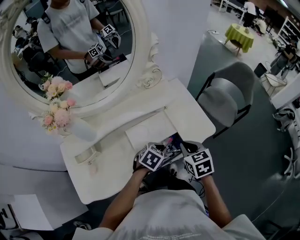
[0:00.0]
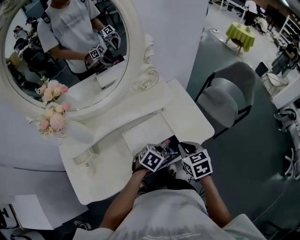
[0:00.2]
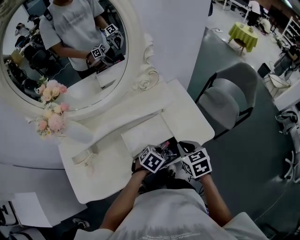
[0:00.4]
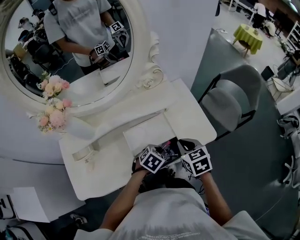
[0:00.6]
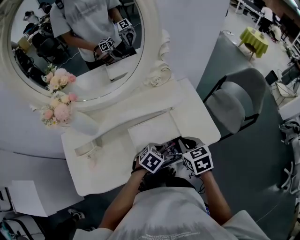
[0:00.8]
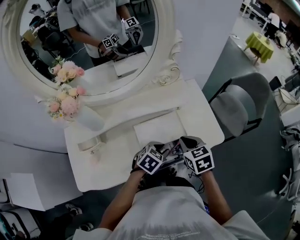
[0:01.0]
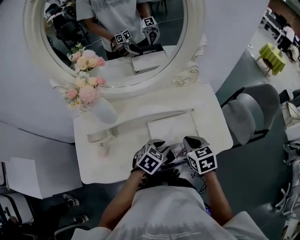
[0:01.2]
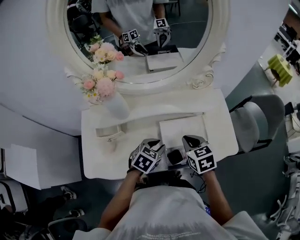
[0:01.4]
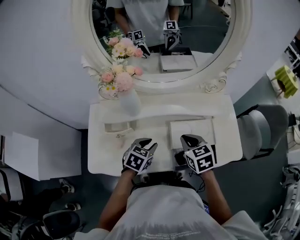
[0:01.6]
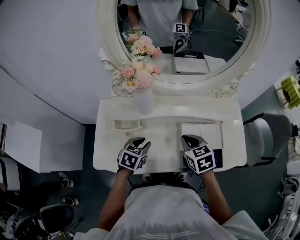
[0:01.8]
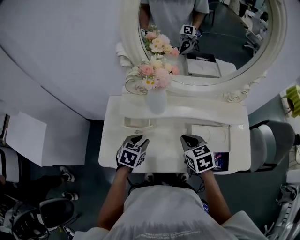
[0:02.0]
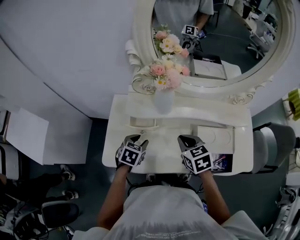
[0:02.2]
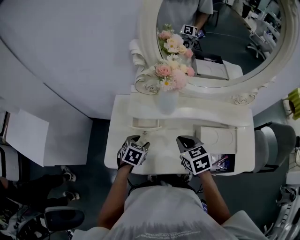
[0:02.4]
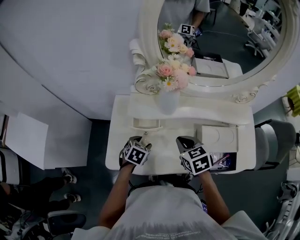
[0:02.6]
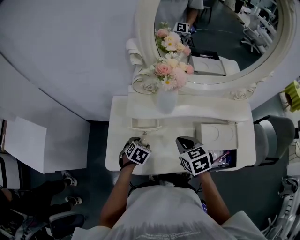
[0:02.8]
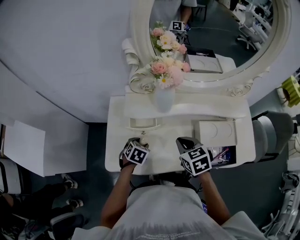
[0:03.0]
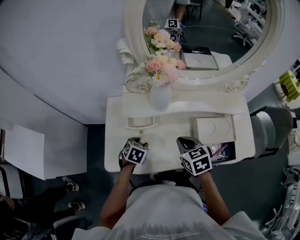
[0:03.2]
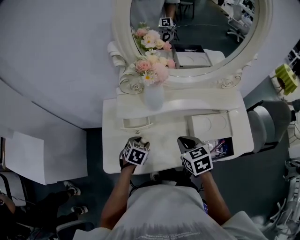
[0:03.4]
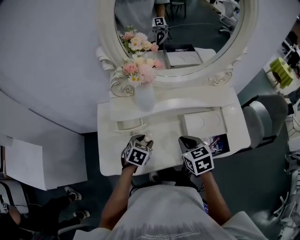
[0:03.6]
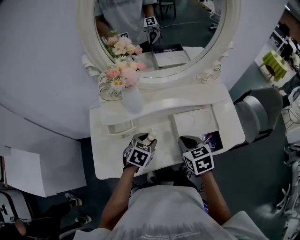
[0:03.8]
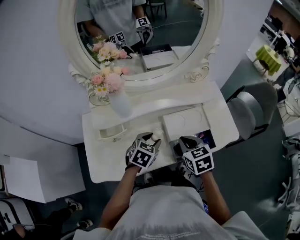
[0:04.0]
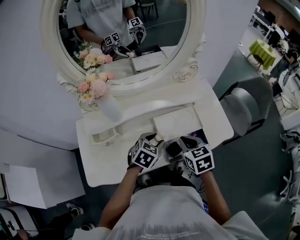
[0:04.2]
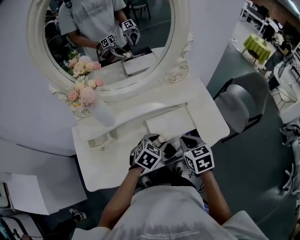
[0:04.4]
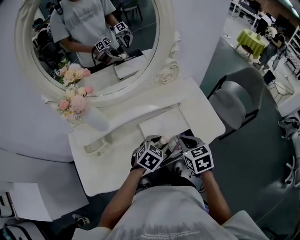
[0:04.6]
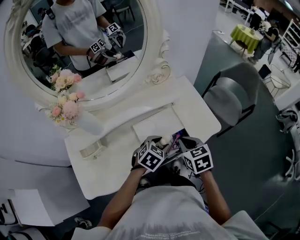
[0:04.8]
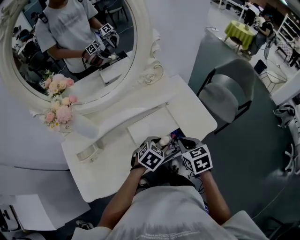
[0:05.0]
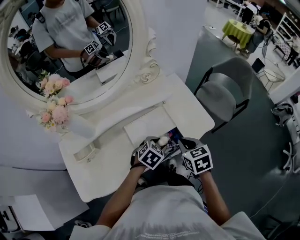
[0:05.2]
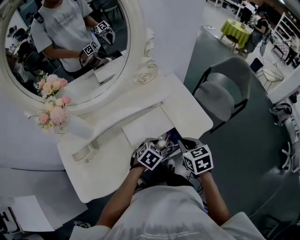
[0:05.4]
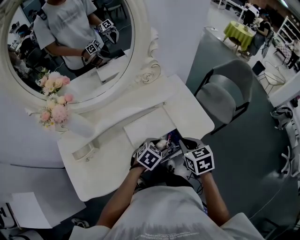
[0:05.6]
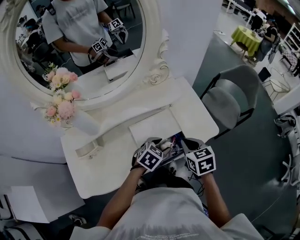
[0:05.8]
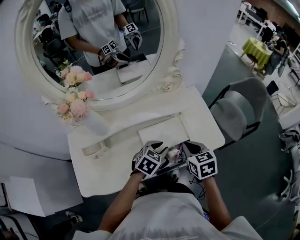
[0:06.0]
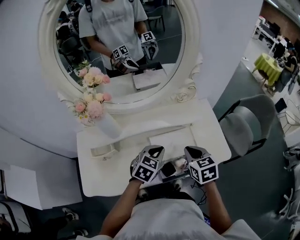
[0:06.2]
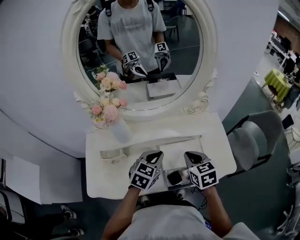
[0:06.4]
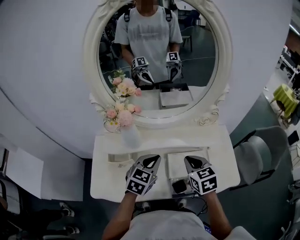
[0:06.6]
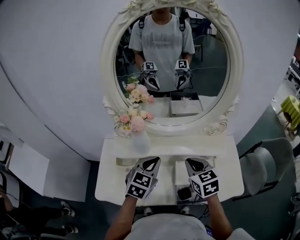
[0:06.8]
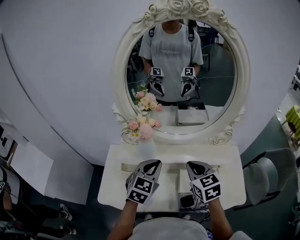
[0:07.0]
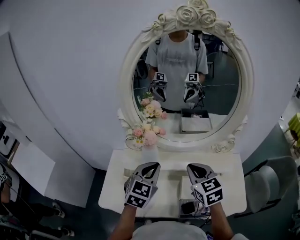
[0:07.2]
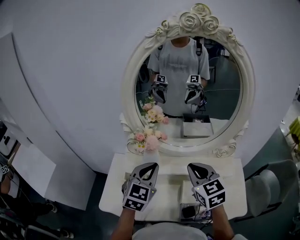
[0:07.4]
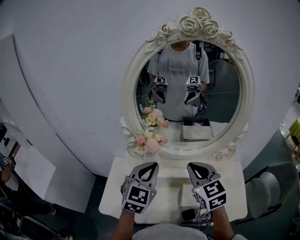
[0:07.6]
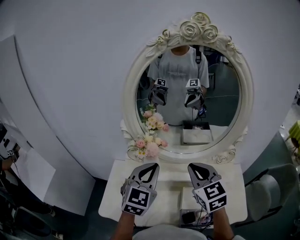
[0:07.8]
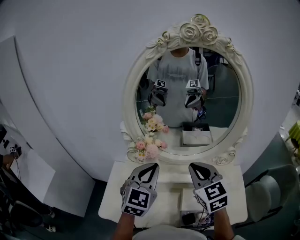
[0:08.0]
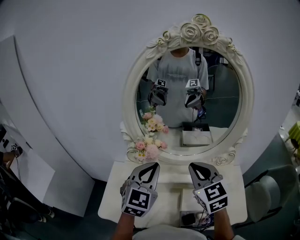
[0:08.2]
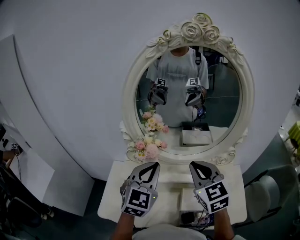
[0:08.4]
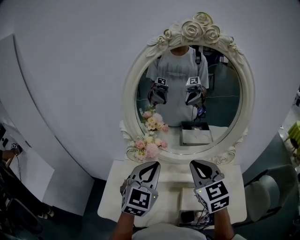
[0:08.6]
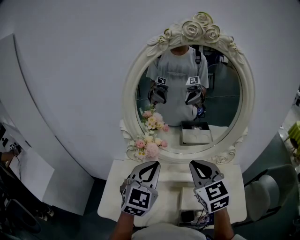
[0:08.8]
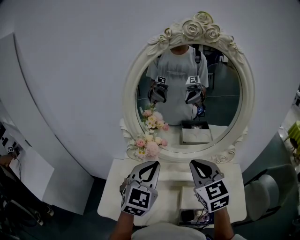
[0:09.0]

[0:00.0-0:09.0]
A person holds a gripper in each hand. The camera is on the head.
0:00.0 to 0:01.6: The left gripper changes place by about 25 cm, and swivels roughly 30 degrees. Meanwhile the right gripper shifts by about 20 cm, and rotates some 30 degrees.
0:01.6 to 0:03.0: The left gripper travels to the left and downward by approximately 20 cm. The right gripper shifts about 15 cm to the left.
0:03.0 to 0:04.4: The left gripper moves about 35 cm, and swivels roughly 40 degrees. Meanwhile the right gripper ends up some 25 cm from where it was, and rotates roughly 20 degrees.
0:04.4 to 0:06.0: The right gripper goes some 5 cm to the right.
0:06.0 to 0:07.6: The left gripper travels upward by roughly 25 cm, tips its fingers upward by about 30 degrees, and closes its fingers, while the right gripper changes place by some 35 cm, and turns by roughly 40 degrees.
0:07.6 to 0:09.0: There are only small adjustments of the grippers.

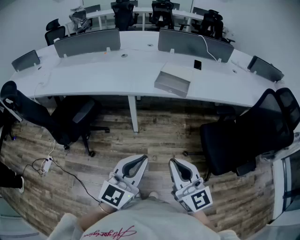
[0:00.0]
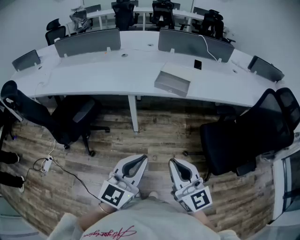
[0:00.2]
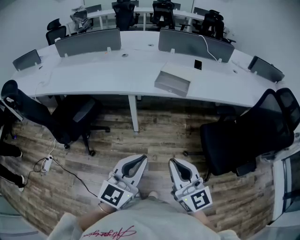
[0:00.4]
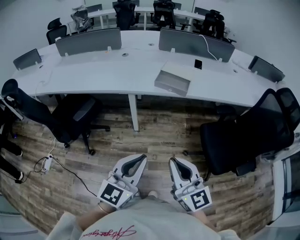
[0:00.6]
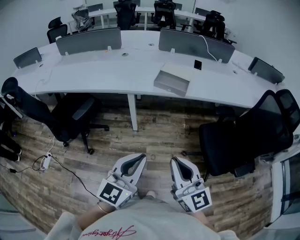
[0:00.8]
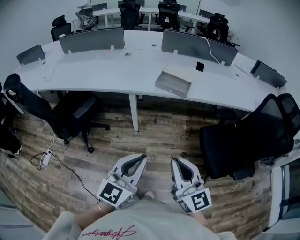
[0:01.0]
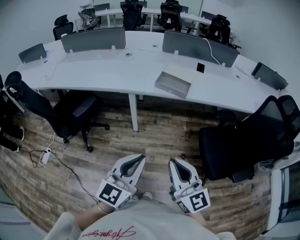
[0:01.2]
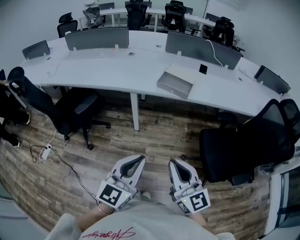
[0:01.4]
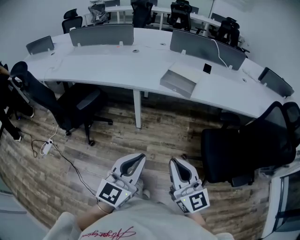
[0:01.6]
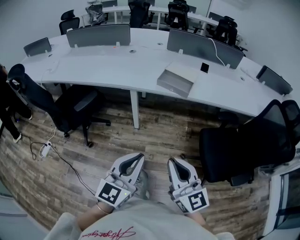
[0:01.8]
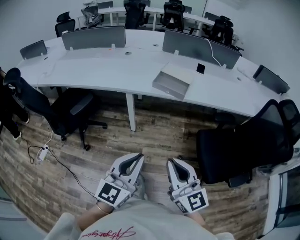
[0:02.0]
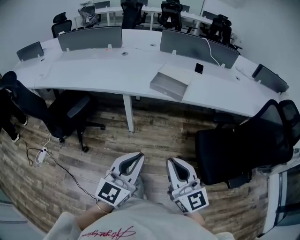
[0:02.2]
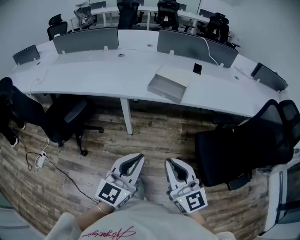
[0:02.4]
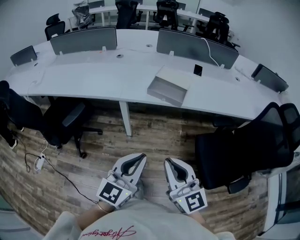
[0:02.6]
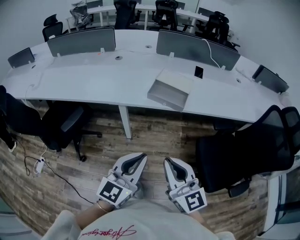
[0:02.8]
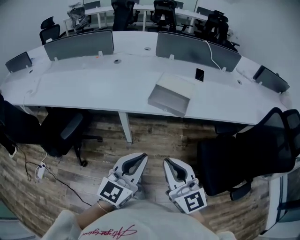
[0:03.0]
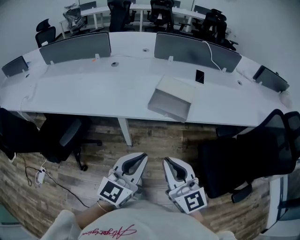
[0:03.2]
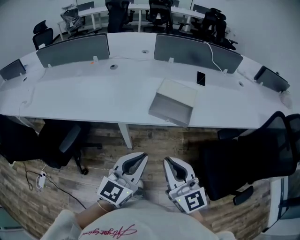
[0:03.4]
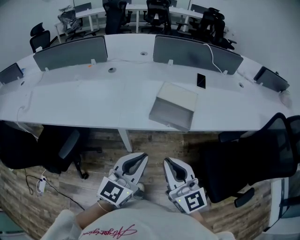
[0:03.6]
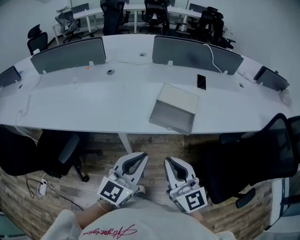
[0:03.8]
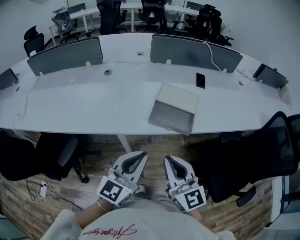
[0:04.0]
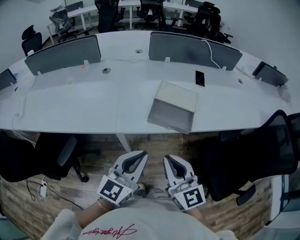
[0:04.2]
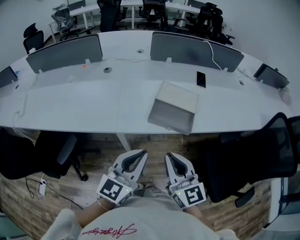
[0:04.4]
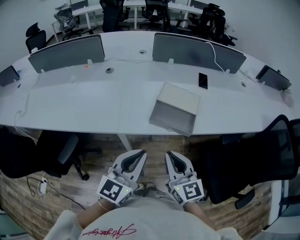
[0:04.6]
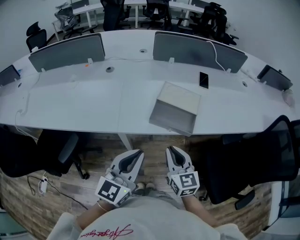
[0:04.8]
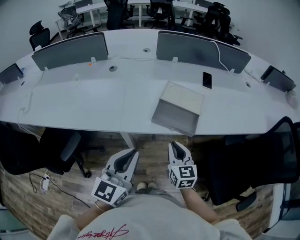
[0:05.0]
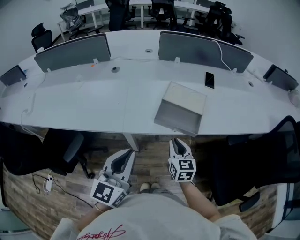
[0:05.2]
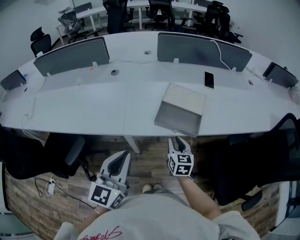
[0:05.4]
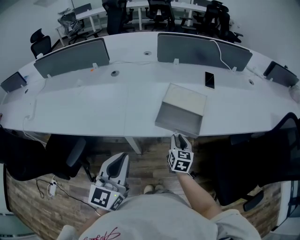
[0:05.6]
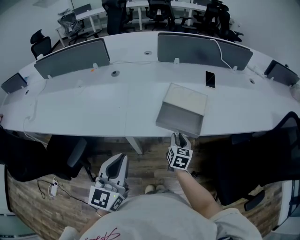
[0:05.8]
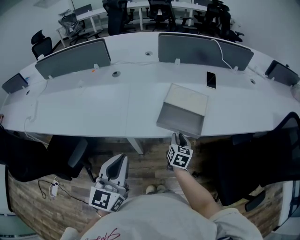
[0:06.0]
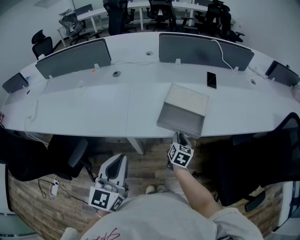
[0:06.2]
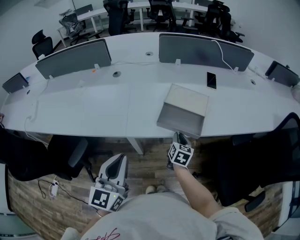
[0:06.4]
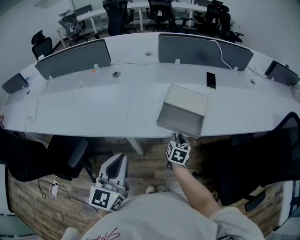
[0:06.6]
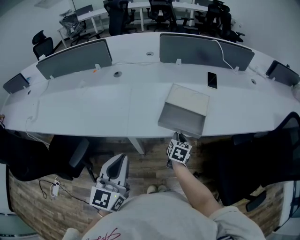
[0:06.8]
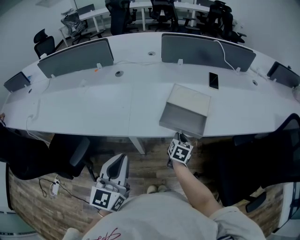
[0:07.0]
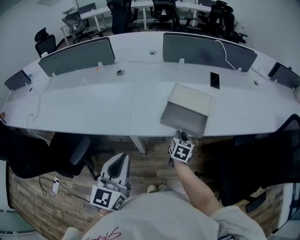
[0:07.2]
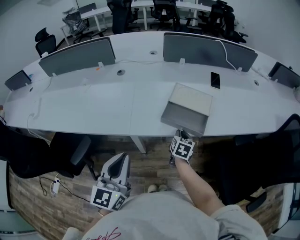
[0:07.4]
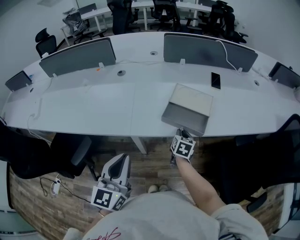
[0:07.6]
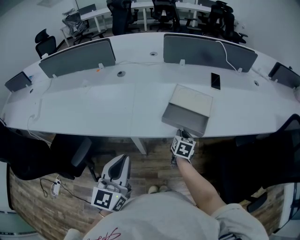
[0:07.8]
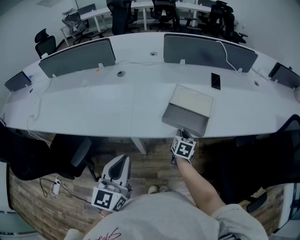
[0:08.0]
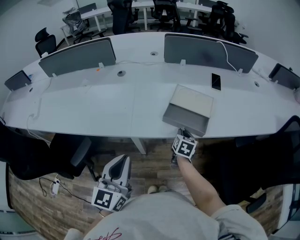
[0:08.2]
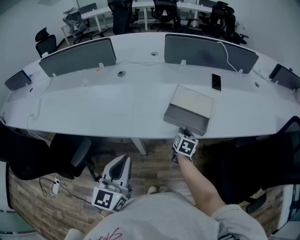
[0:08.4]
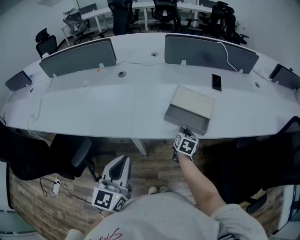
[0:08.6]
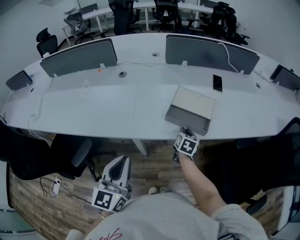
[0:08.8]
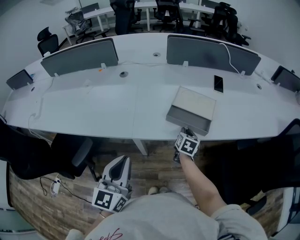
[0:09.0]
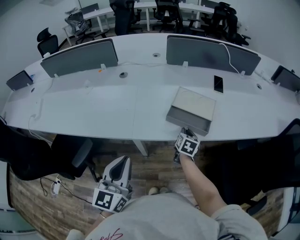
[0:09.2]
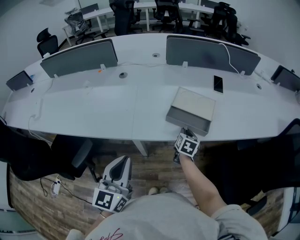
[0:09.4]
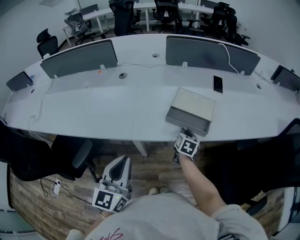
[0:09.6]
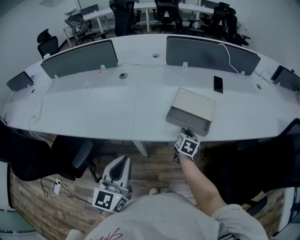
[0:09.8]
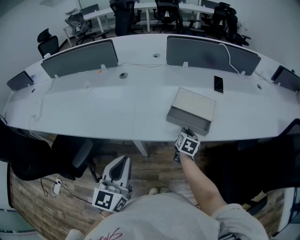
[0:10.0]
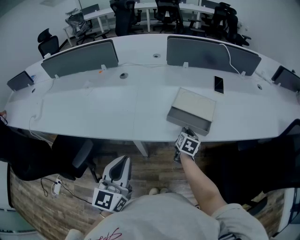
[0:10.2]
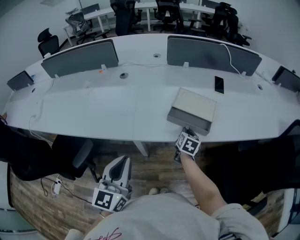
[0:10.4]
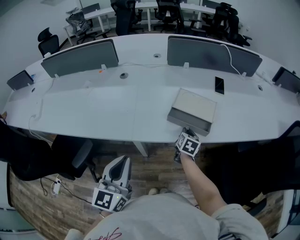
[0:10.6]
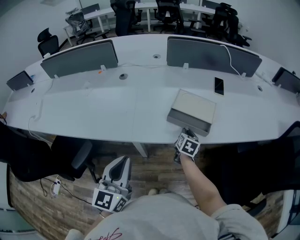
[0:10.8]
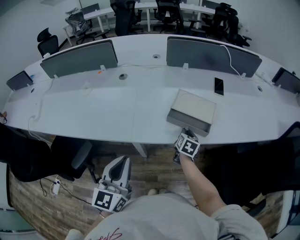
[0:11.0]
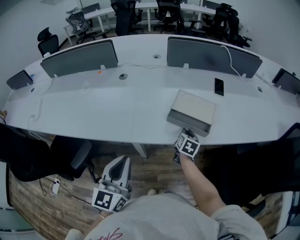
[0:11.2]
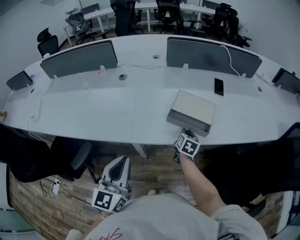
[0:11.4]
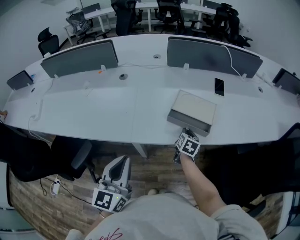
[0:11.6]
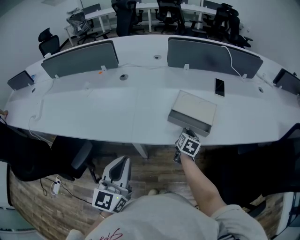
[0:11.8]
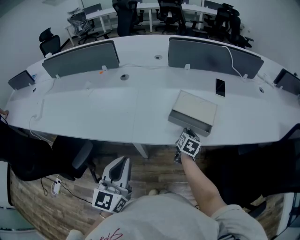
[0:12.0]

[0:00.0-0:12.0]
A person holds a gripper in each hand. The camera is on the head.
0:00.0 to 0:01.6: There are only small adjustments of the grippers.
0:01.6 to 0:03.0: Both grippers travel together forward, about 20 cm.
0:03.0 to 0:04.4: Both grippers move forward, about 15 cm.
0:04.4 to 0:06.0: The right gripper shifts about 25 cm downward and forward, and changes its angle by roughly 40 degrees; the left gripper goes some 10 cm to the left.
0:06.0 to 0:09.0: The grippers stay close to where they were, moving slightly.
0:09.0 to 0:10.4: Neither gripper changes place.
0:10.4 to 0:12.0: Both grippers stay about where they are.

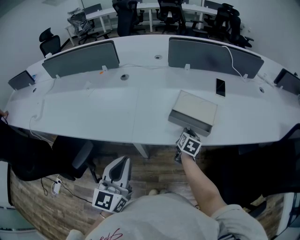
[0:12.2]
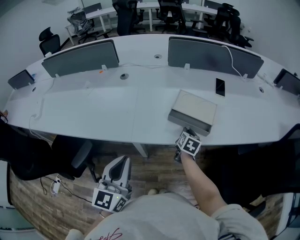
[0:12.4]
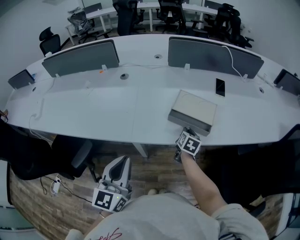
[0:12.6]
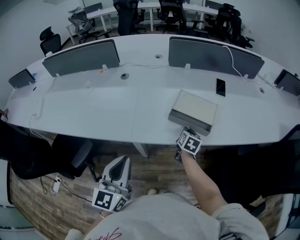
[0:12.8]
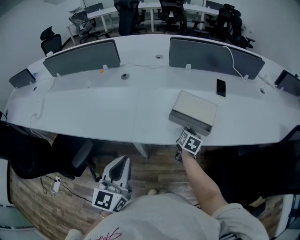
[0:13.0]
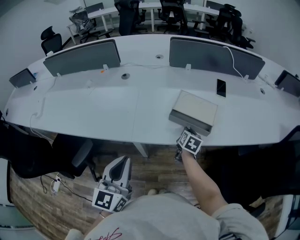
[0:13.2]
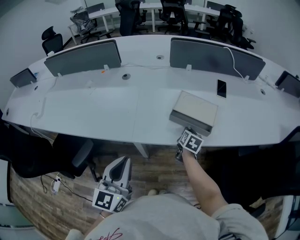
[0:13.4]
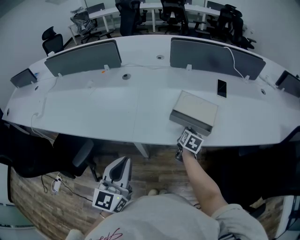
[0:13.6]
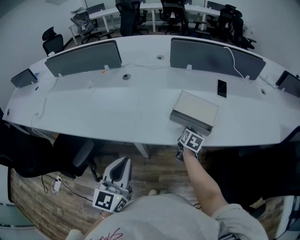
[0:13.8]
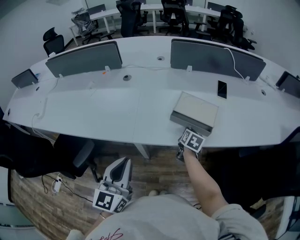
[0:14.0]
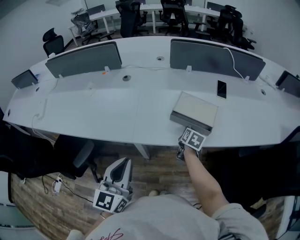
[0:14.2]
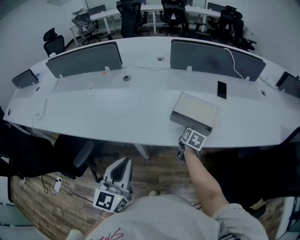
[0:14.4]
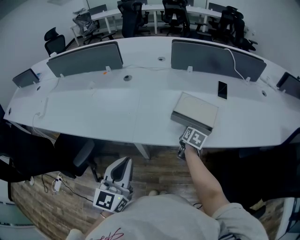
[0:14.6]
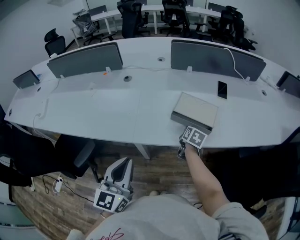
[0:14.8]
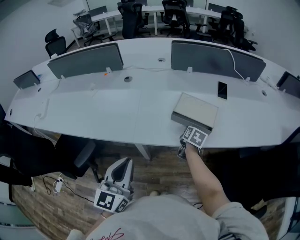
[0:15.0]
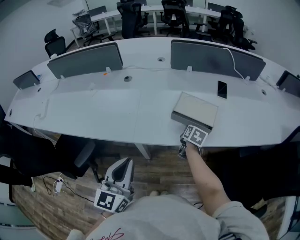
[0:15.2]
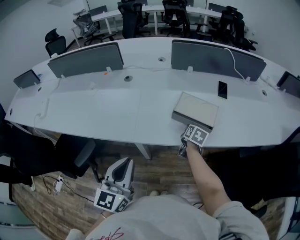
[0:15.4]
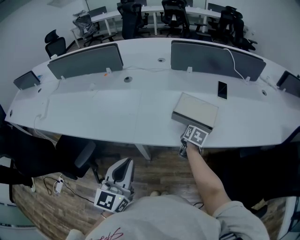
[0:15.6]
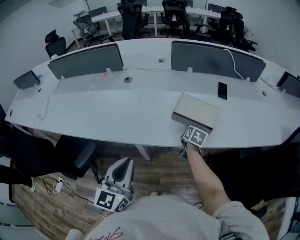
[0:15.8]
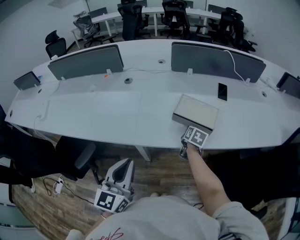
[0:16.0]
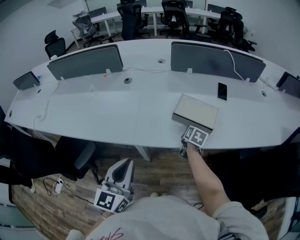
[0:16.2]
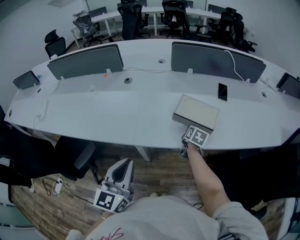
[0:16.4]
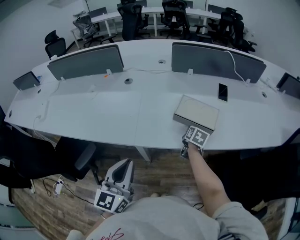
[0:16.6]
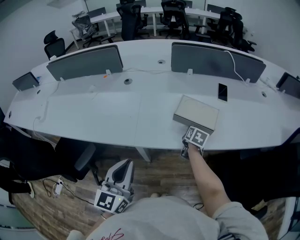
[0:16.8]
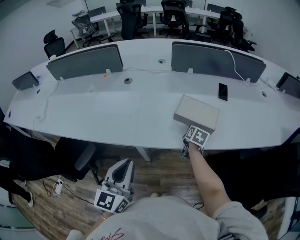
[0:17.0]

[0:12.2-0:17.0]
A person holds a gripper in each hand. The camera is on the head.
0:12.2 to 0:13.8: Both grippers stay about where they are.
0:13.8 to 0:17.0: The grippers stay close to where they were, moving slightly.
